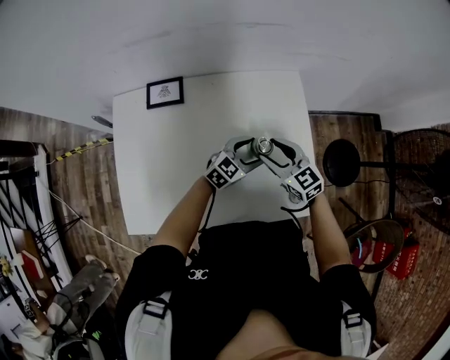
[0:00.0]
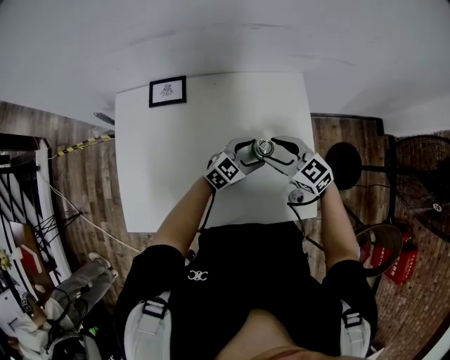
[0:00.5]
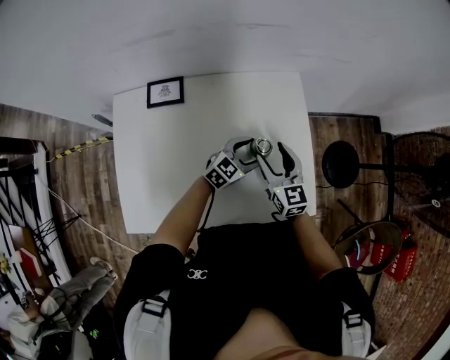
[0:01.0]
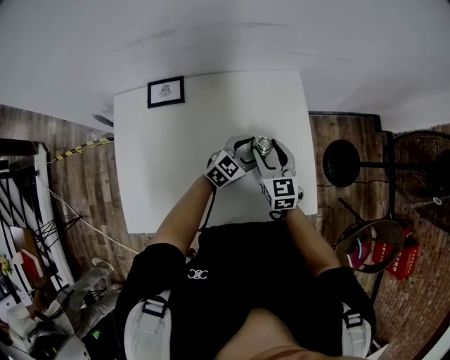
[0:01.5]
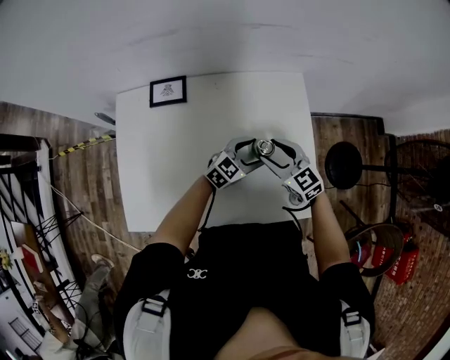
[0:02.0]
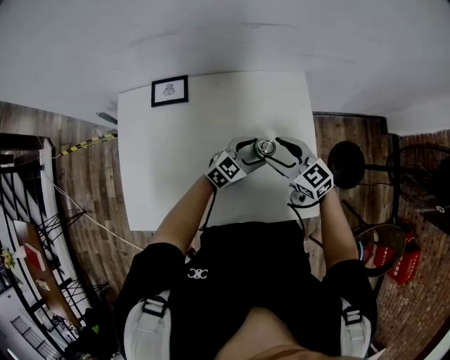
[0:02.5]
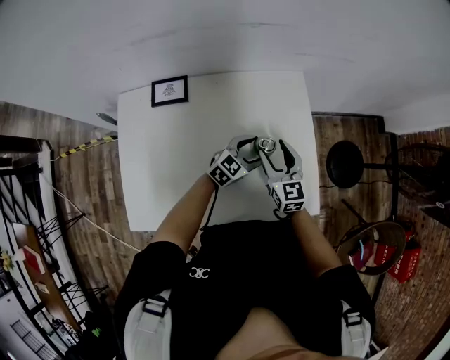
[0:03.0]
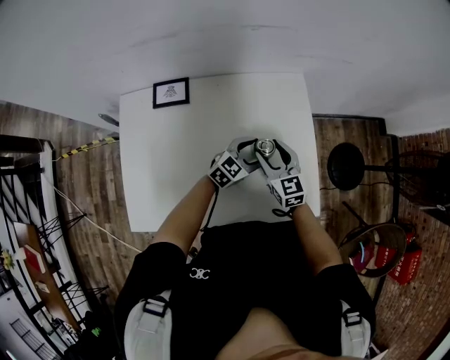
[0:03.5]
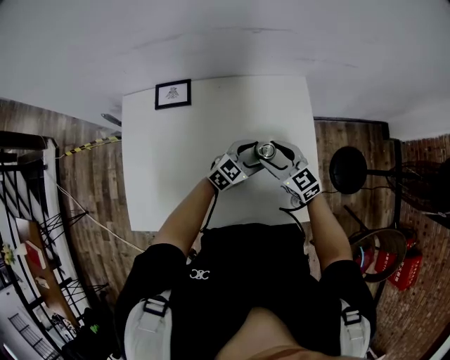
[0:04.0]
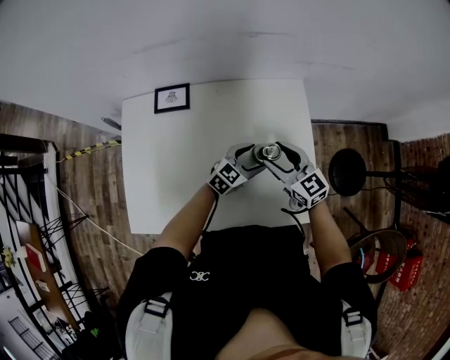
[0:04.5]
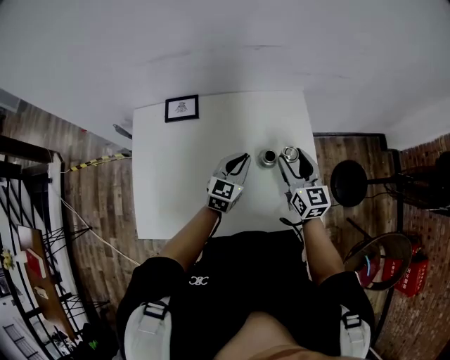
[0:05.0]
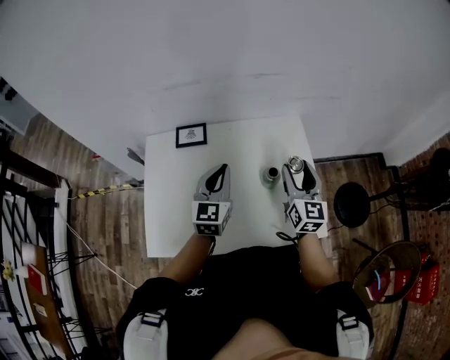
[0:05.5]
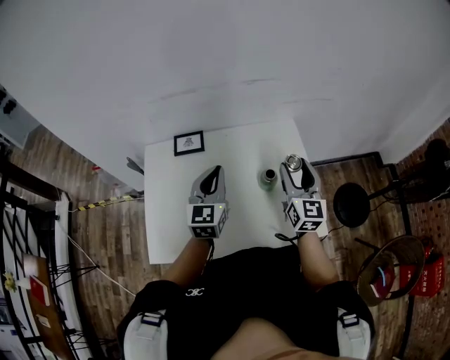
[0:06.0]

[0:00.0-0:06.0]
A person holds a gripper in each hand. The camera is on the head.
0:04.0 to 0:06.0: The left gripper goes roughly 30 cm upward and to the left, swivels approximately 50 degrees, and closes up. The right gripper moves upward, some 20 cm, and changes its angle by some 50 degrees.

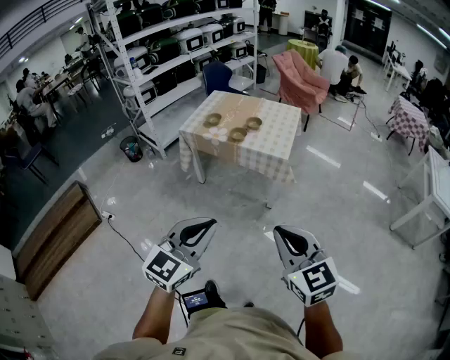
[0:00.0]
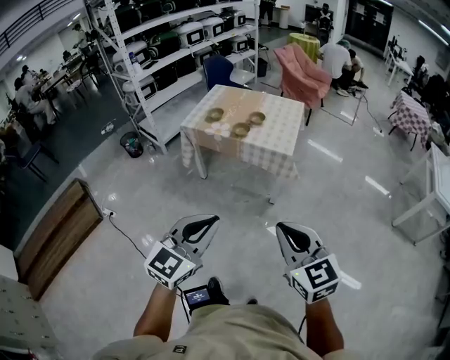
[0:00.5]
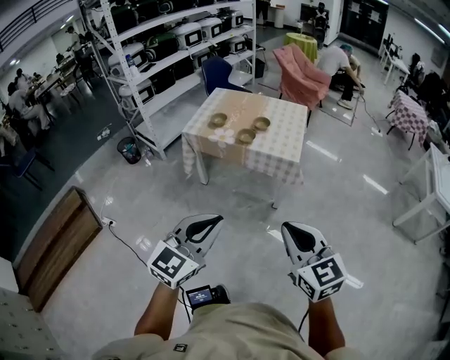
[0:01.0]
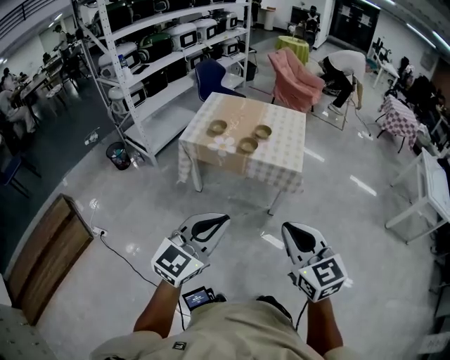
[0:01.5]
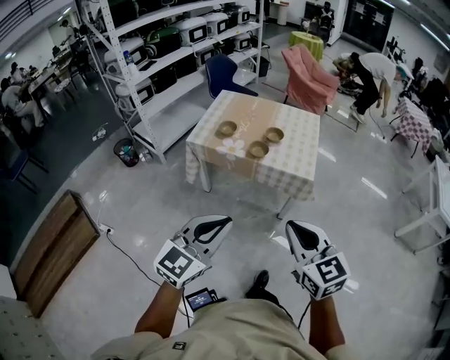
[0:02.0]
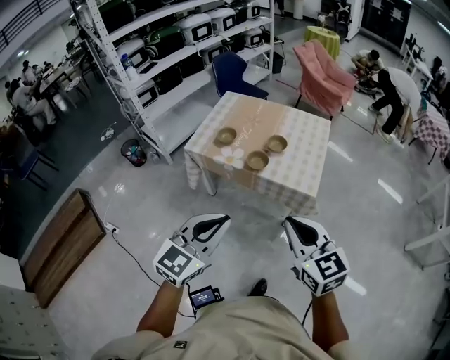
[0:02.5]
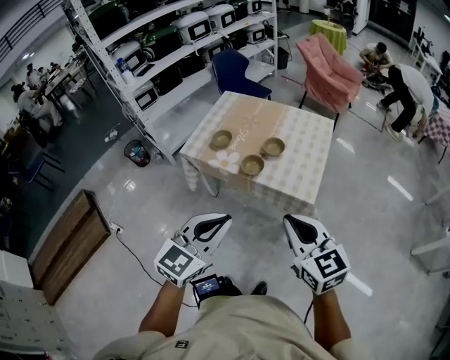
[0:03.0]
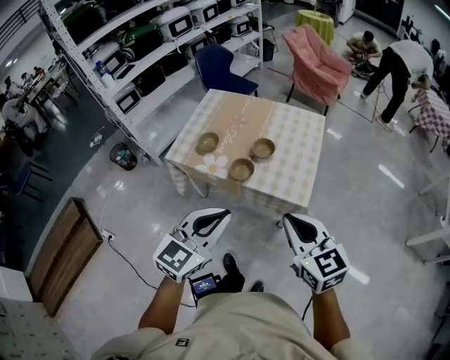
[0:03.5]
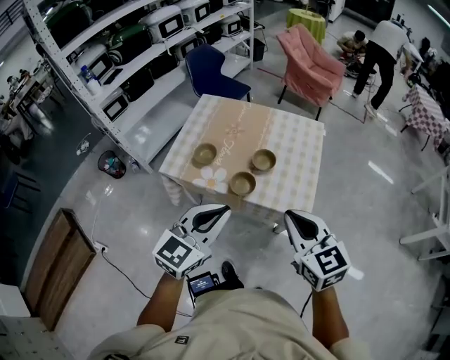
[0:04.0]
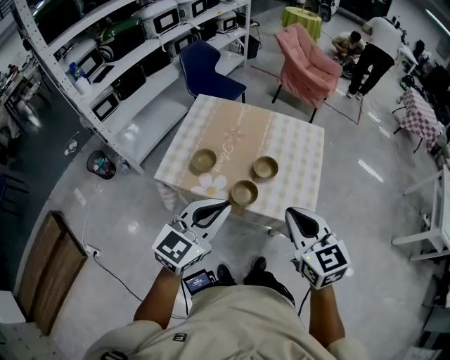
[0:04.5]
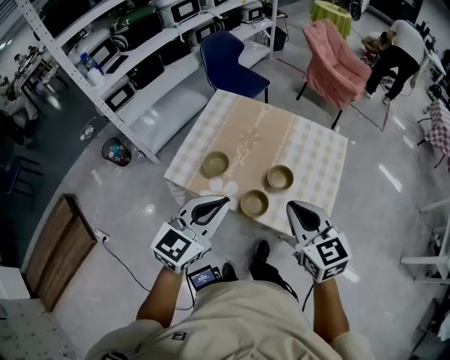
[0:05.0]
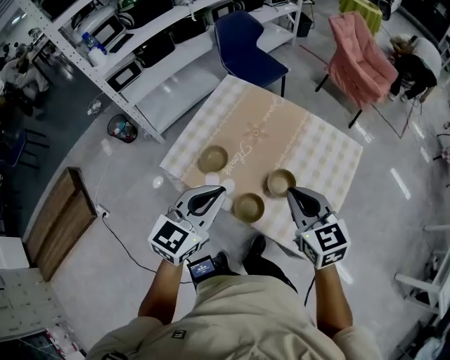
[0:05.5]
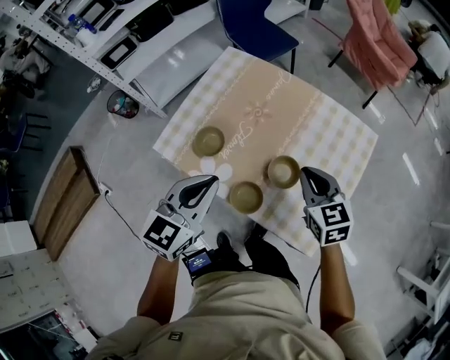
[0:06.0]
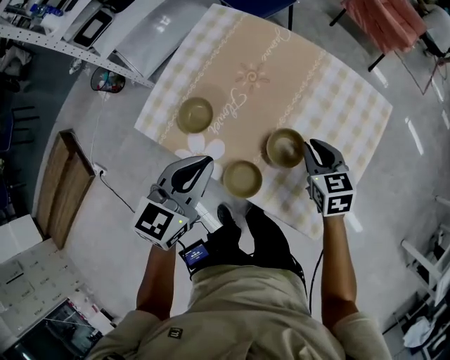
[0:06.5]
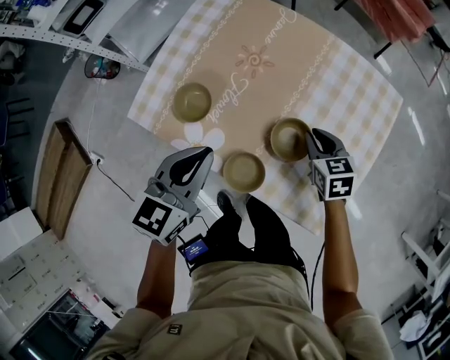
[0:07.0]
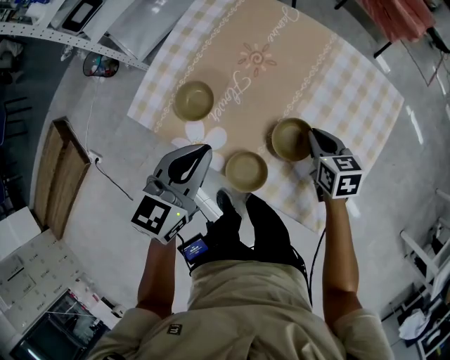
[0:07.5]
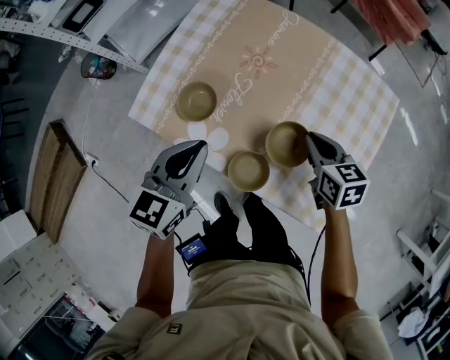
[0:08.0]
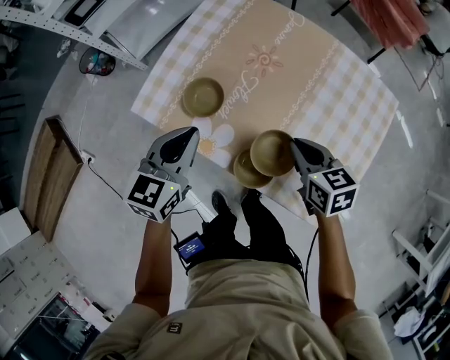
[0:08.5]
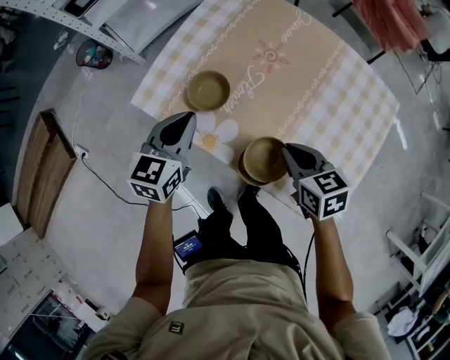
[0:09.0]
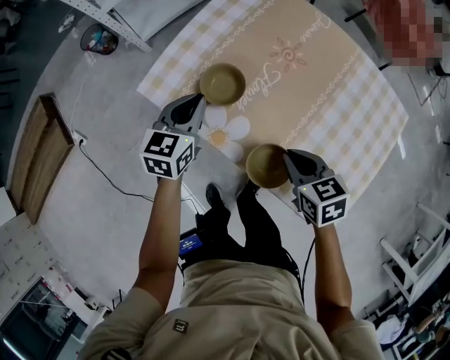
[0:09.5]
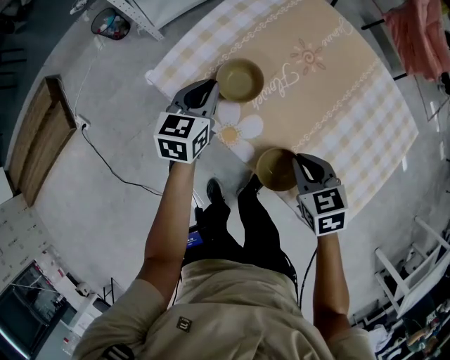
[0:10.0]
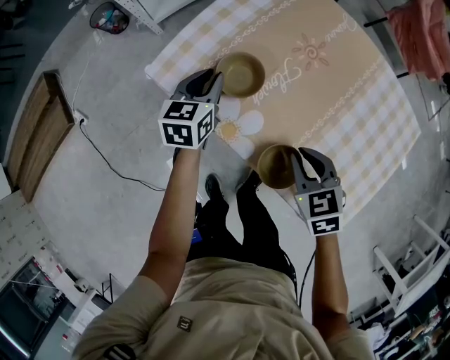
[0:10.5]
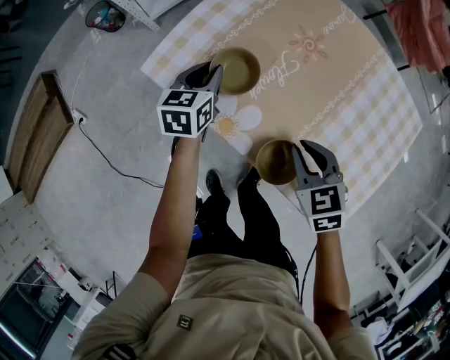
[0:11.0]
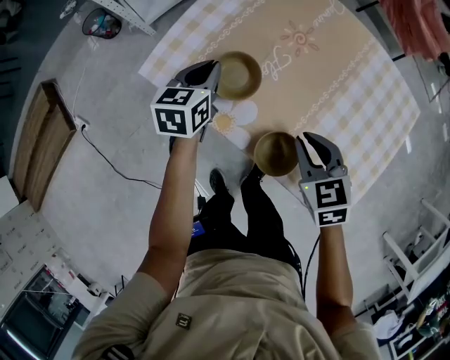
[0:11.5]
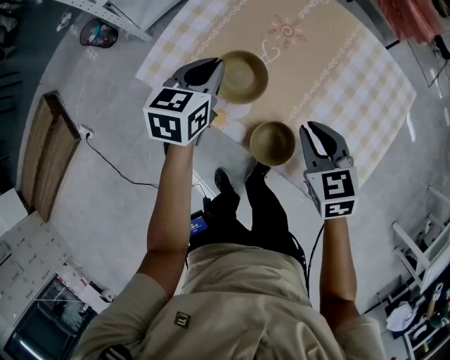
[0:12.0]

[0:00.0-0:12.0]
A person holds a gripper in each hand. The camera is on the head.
0:00.0 to 0:02.0: Both grippers travel together forward and to the left, approximately 25 cm.
0:02.0 to 0:04.0: The grippers both shift forward by roughly 35 cm.
0:04.0 to 0:06.0: The grippers both shift forward and downward by about 35 cm. The left gripper turns by some 20 degrees.
0:06.0 to 0:08.0: The two grippers go roughly 10 cm downward.
0:08.0 to 0:10.0: The left gripper goes approximately 20 cm downward, to the left and forward. The right gripper is displaced to the left by some 15 cm, and turns by about 30 degrees.
0:10.0 to 0:12.0: The right gripper is displaced upward by roughly 5 cm. The left gripper goes some 10 cm to the right and upward.

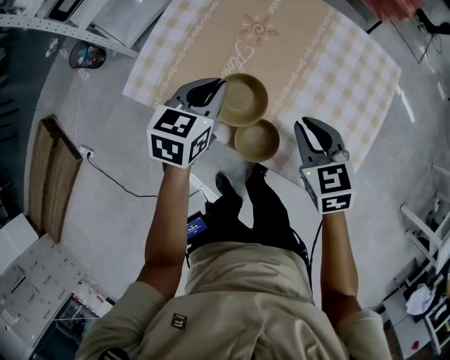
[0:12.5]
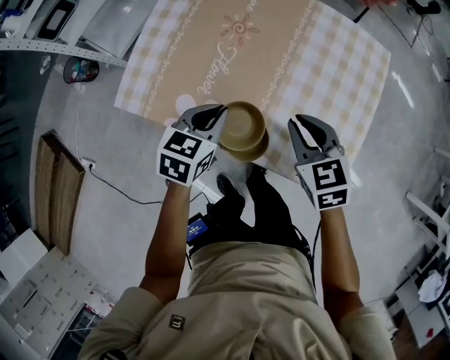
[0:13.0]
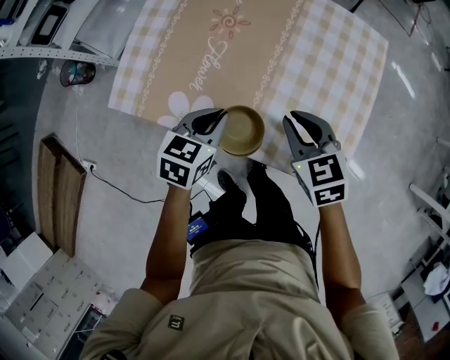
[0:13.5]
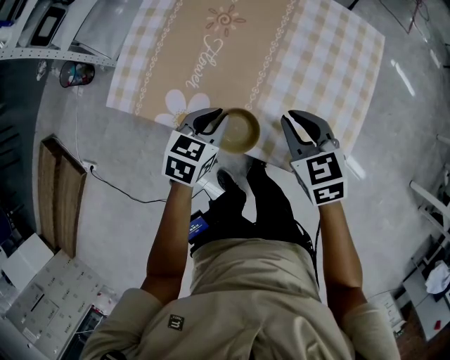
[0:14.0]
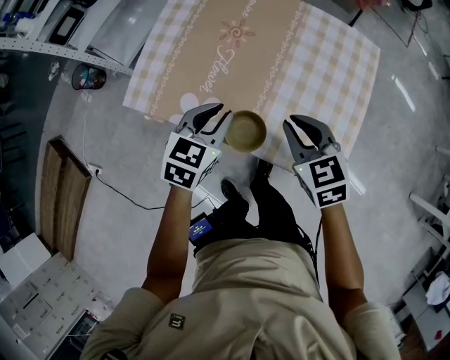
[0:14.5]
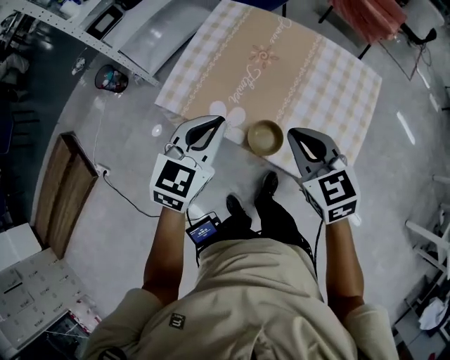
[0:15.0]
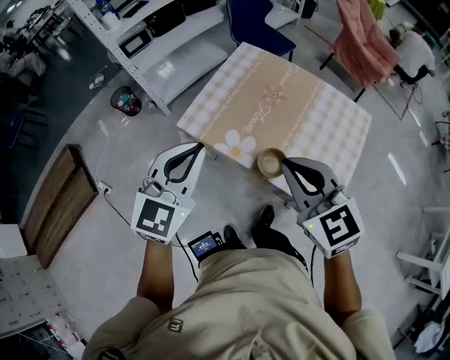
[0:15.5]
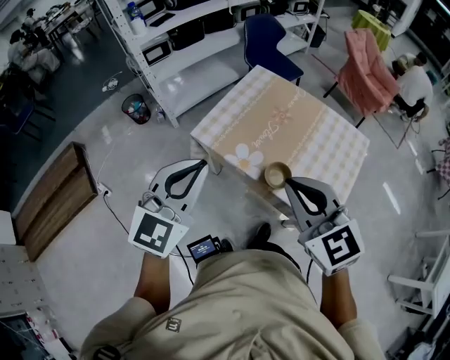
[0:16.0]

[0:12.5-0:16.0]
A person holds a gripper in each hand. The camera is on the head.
0:12.5 to 0:14.5: The right gripper moves about 5 cm, while the left gripper moves backward and to the right, about 10 cm, and reaches approximately 5 cm downward, then returns.
0:14.5 to 0:16.0: The two grippers go about 40 cm upward, to the left and backward. The right gripper rotates approximately 30 degrees. Meanwhile the left gripper rotates some 40 degrees.

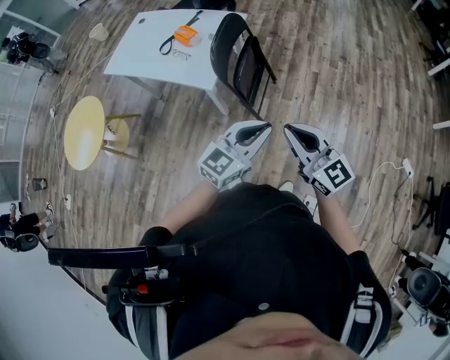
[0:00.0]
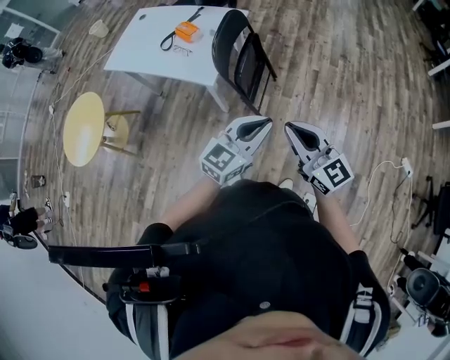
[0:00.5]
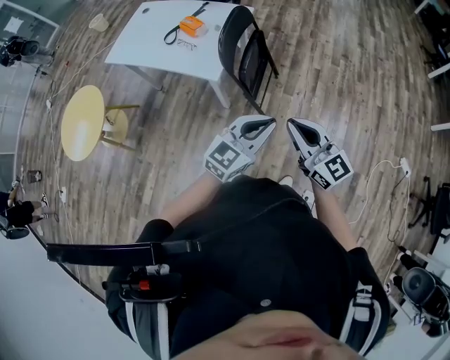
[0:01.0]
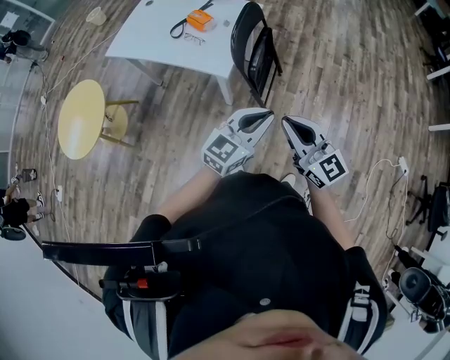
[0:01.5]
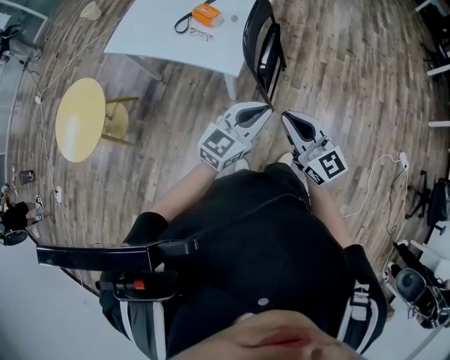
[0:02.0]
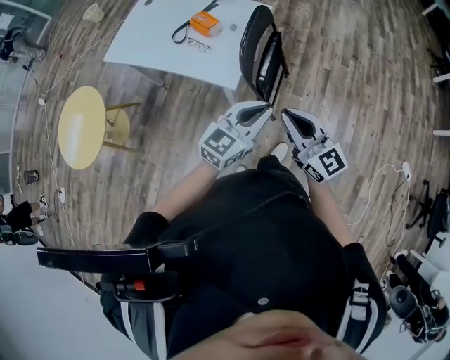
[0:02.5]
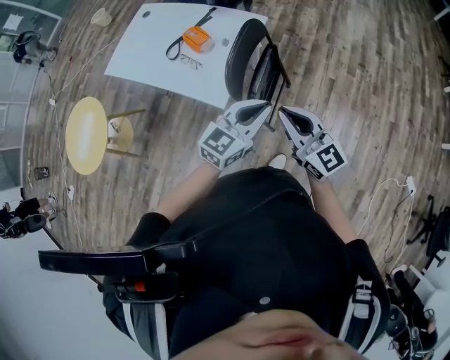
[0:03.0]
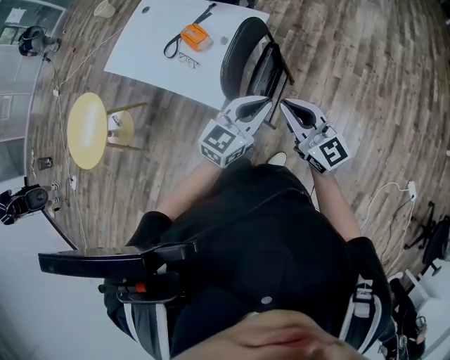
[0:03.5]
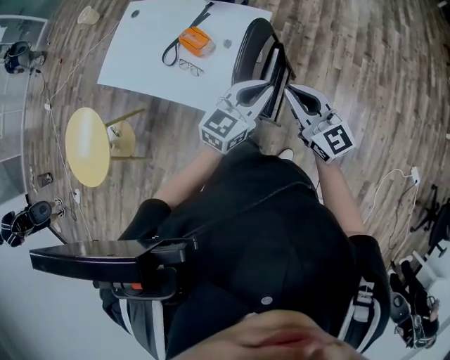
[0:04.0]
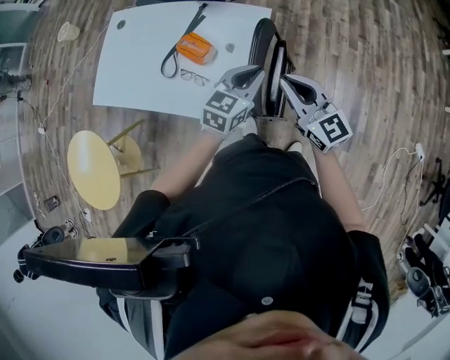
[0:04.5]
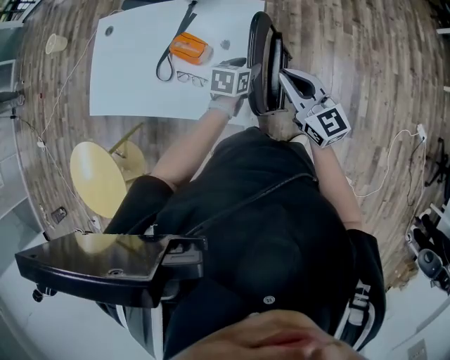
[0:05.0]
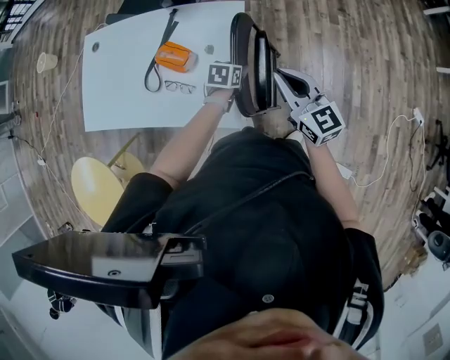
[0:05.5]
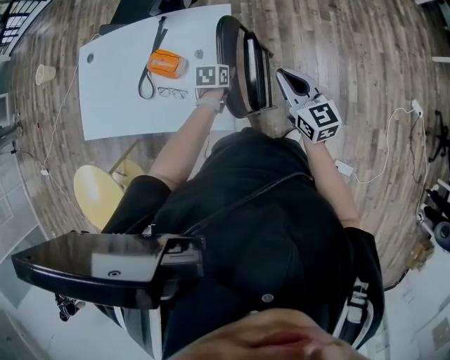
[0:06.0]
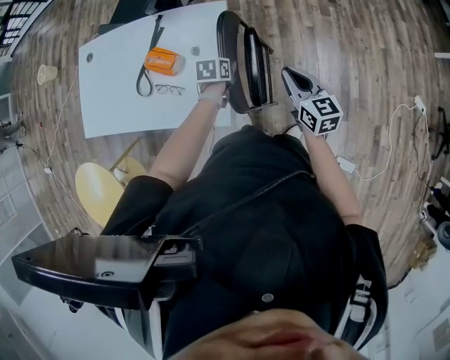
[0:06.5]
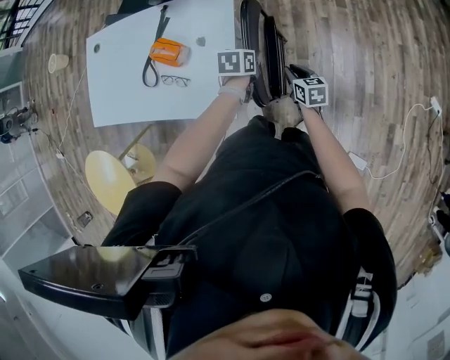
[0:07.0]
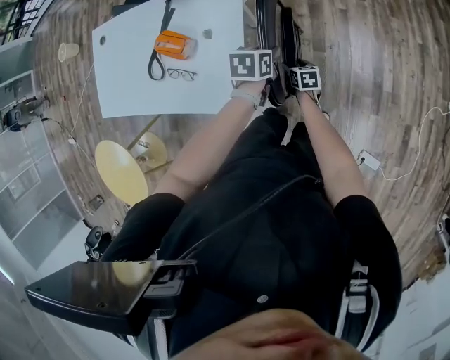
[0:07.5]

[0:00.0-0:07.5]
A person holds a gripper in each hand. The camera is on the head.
0:00.0 to 0:02.0: The two grippers go some 15 cm to the left.
0:02.0 to 0:04.0: Both grippers move forward, approximately 30 cm.
0:04.0 to 0:05.5: The left gripper heads downward and forward, covering roughly 30 cm, tips its fingers downward by some 40 degrees, and opens up. The right gripper shifts approximately 10 cm forward and downward, and turns by roughly 20 degrees.
0:05.5 to 0:07.5: The left gripper shifts roughly 10 cm to the right, while the right gripper moves downward, approximately 40 cm, angles its fingers downward, by approximately 40 degrees, and opens up.
